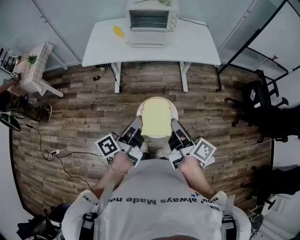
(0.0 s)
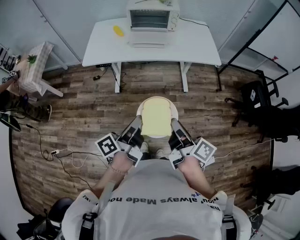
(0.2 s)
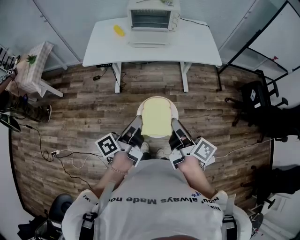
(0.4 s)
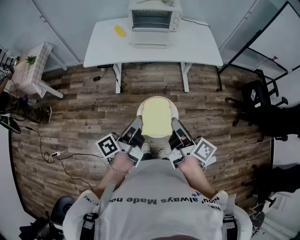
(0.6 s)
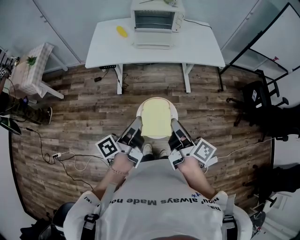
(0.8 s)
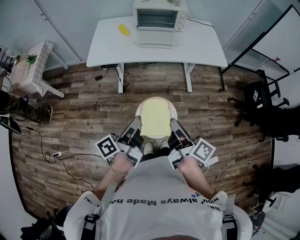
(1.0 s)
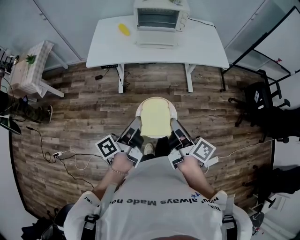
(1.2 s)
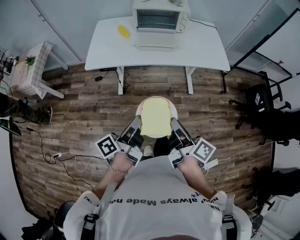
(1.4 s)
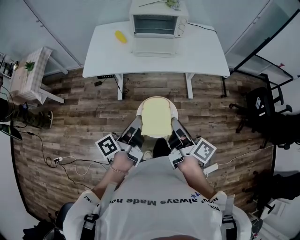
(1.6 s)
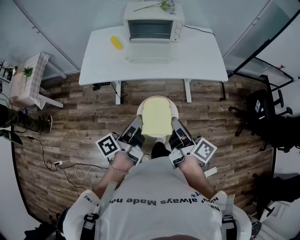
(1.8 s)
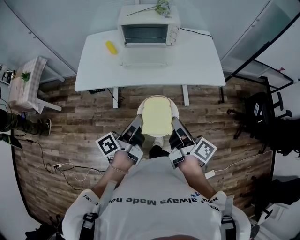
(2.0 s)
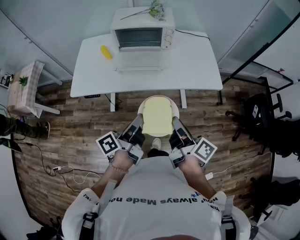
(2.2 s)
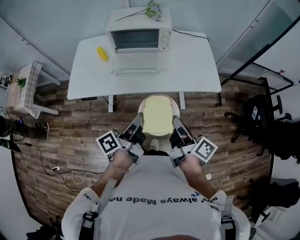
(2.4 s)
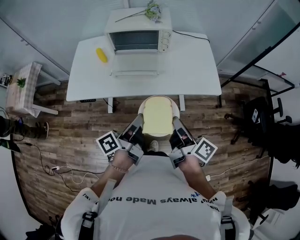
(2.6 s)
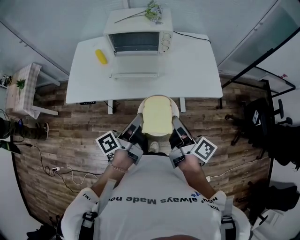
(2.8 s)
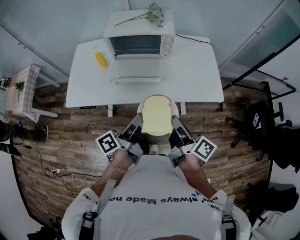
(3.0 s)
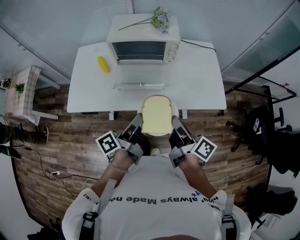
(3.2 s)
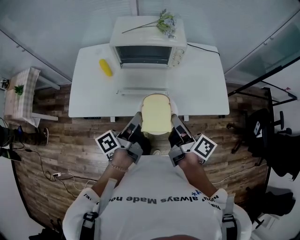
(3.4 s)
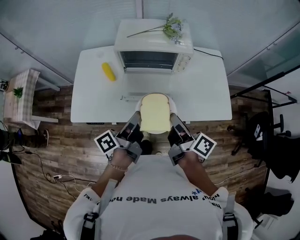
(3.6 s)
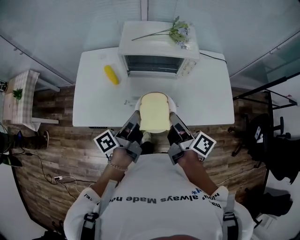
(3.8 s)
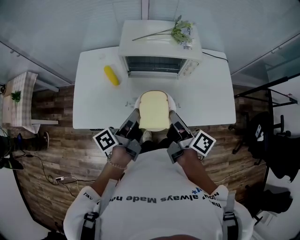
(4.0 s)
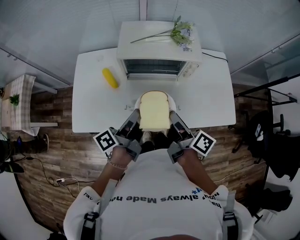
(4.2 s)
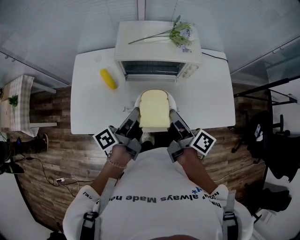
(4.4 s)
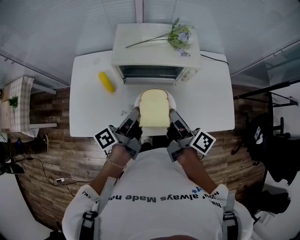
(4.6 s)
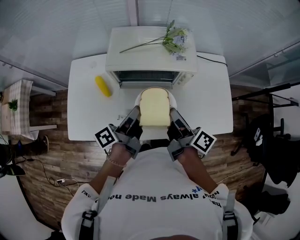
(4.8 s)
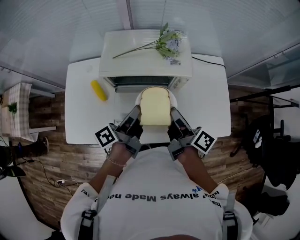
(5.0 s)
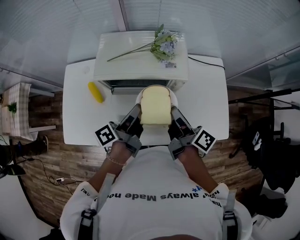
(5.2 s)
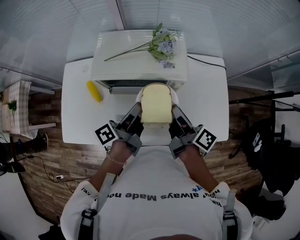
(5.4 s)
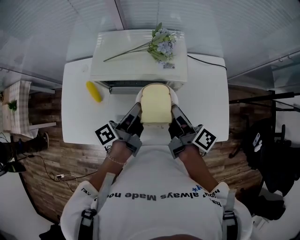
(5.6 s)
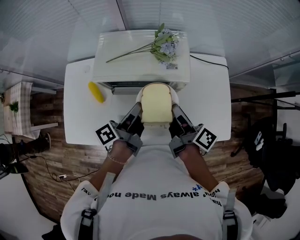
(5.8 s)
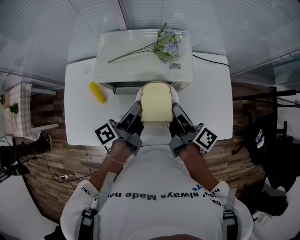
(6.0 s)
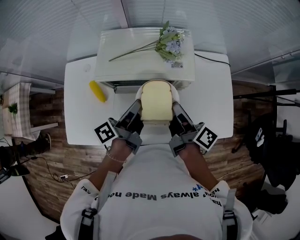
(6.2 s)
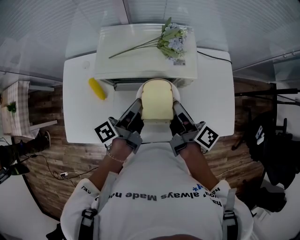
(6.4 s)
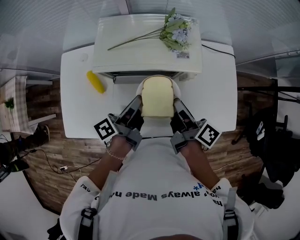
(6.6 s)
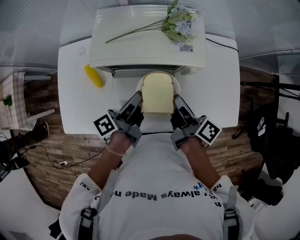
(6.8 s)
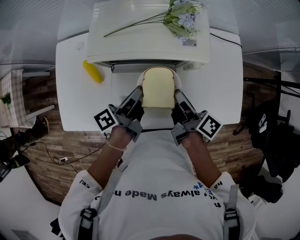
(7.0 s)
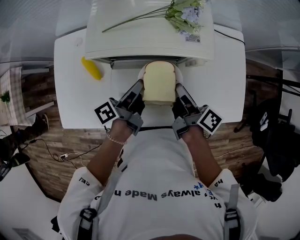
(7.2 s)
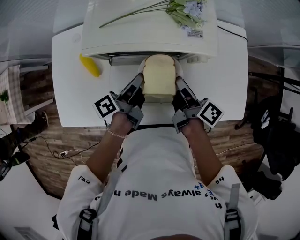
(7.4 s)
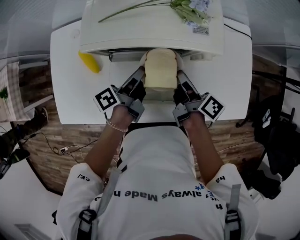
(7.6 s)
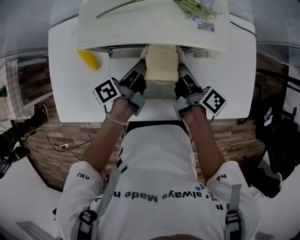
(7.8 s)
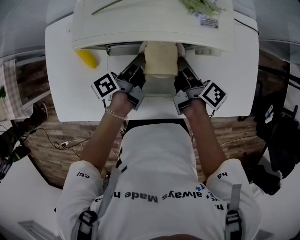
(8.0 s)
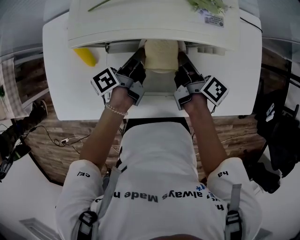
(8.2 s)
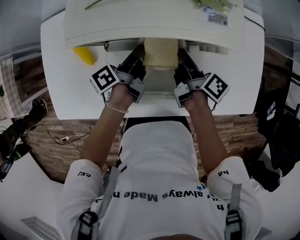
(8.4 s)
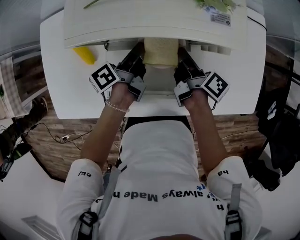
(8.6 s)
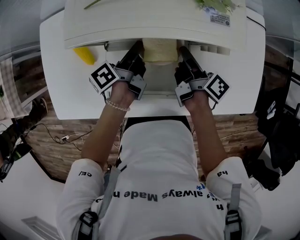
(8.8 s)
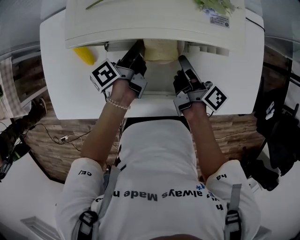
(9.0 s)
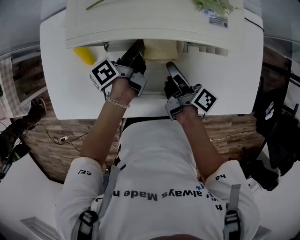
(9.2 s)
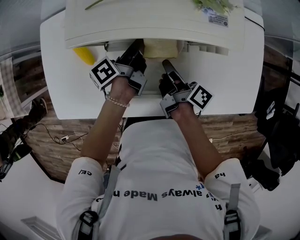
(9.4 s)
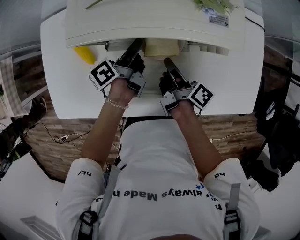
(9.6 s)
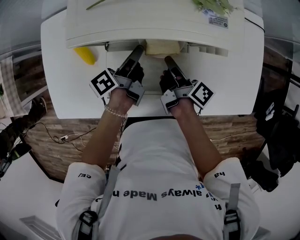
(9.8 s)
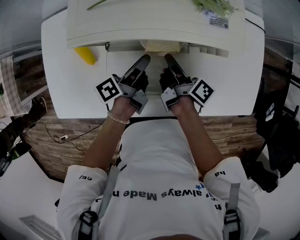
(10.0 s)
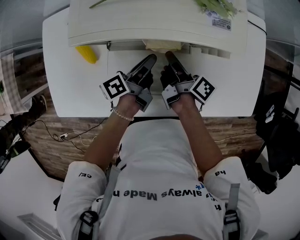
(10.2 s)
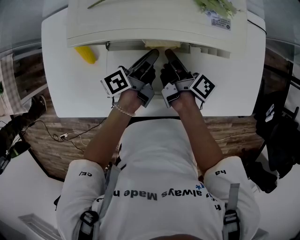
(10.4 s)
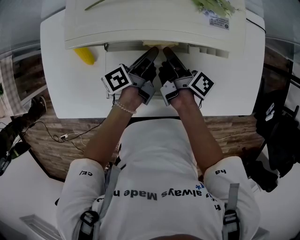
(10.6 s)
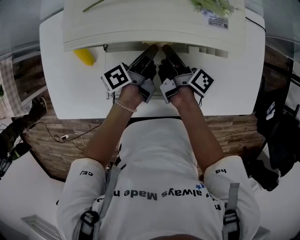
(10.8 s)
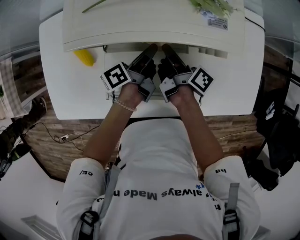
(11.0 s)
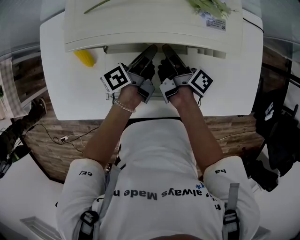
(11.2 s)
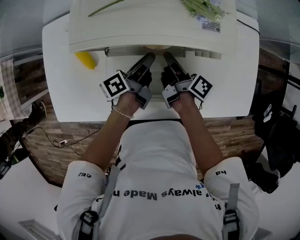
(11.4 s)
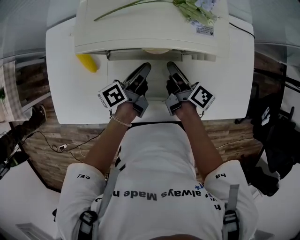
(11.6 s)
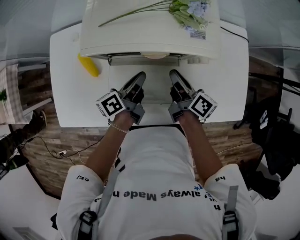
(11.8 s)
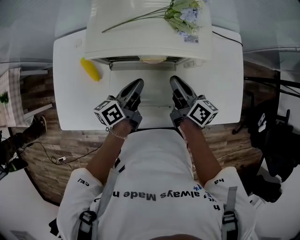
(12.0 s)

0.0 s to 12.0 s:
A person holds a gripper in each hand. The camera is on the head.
0.0 to 1.6 s: The right gripper changes place by approximately 15 cm.
1.6 to 3.0 s: The right gripper ends up roughly 30 cm from where it was.
3.0 to 4.4 s: The right gripper moves roughly 30 cm.
4.4 to 6.0 s: The right gripper changes place by roughly 15 cm.
6.0 to 7.6 s: The right gripper is displaced downward by approximately 15 cm.
7.6 to 9.0 s: The right gripper heads downward, covering some 5 cm.
10.4 to 12.0 s: The right gripper is displaced upward by some 10 cm, and turns by about 30 degrees.

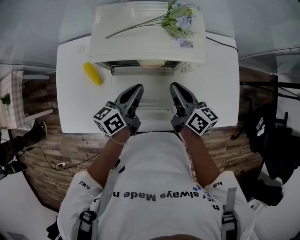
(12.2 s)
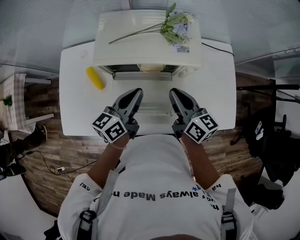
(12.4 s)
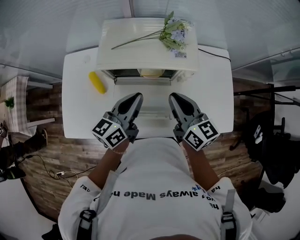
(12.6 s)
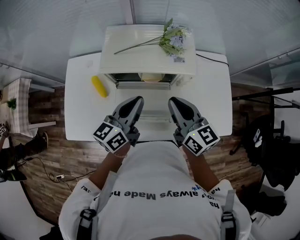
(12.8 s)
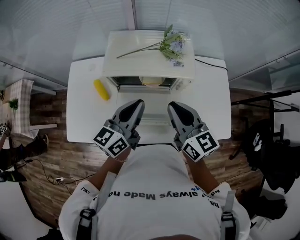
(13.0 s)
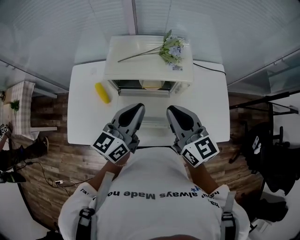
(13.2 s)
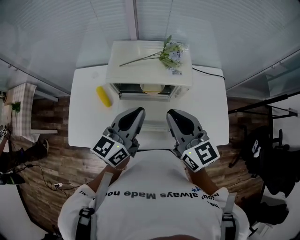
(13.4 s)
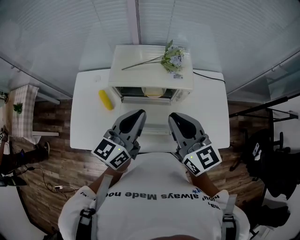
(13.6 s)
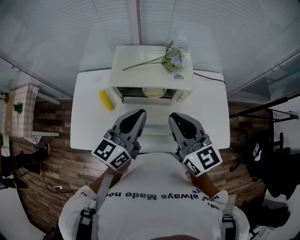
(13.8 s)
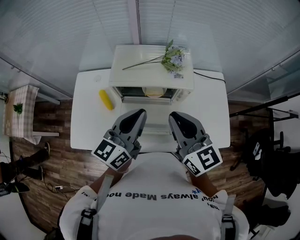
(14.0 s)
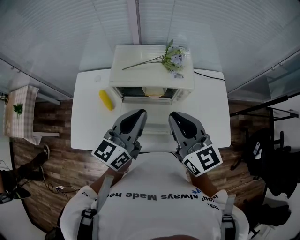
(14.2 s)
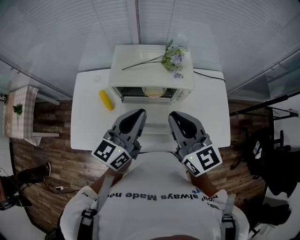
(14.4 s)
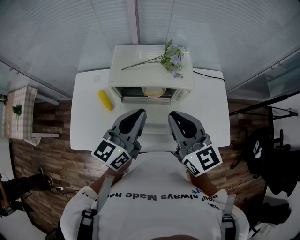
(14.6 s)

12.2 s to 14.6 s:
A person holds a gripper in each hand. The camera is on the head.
12.2 to 13.4 s: The right gripper is displaced upward by roughly 20 cm, and changes its angle by about 40 degrees.

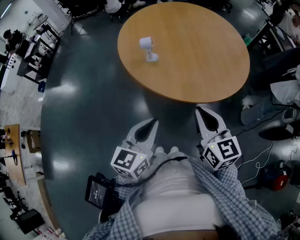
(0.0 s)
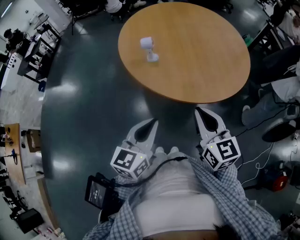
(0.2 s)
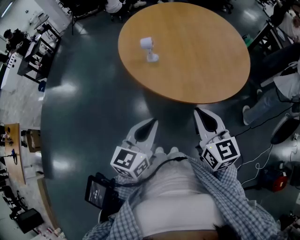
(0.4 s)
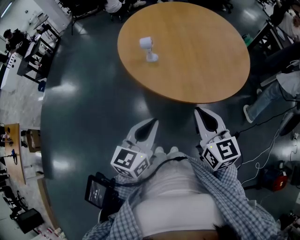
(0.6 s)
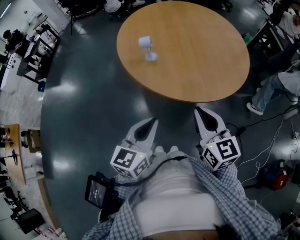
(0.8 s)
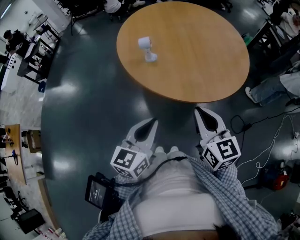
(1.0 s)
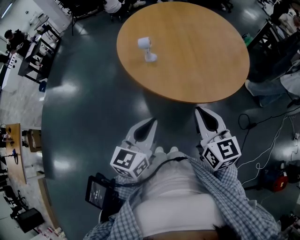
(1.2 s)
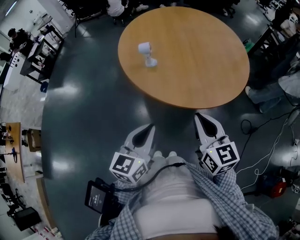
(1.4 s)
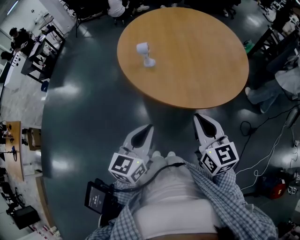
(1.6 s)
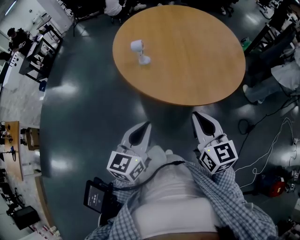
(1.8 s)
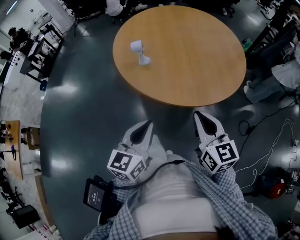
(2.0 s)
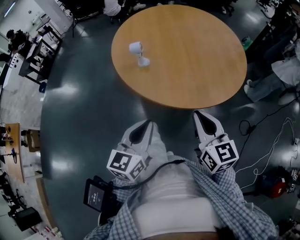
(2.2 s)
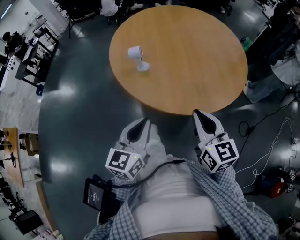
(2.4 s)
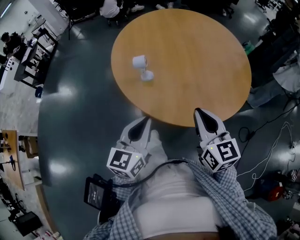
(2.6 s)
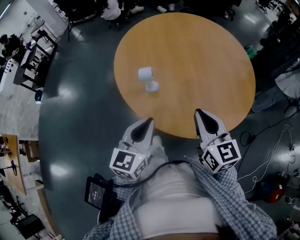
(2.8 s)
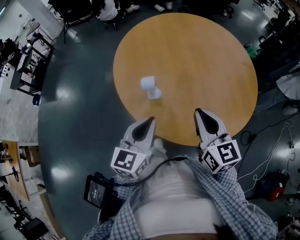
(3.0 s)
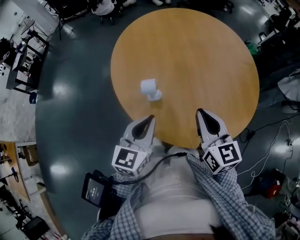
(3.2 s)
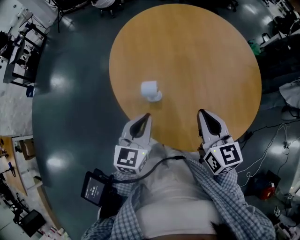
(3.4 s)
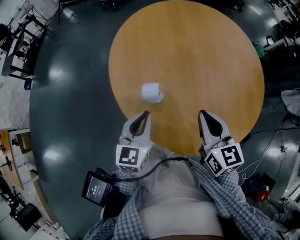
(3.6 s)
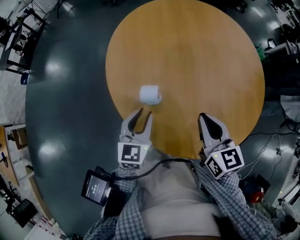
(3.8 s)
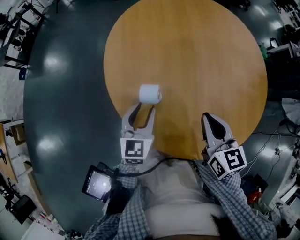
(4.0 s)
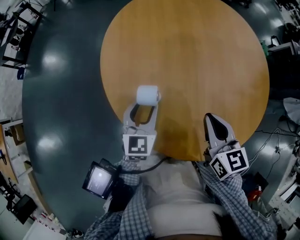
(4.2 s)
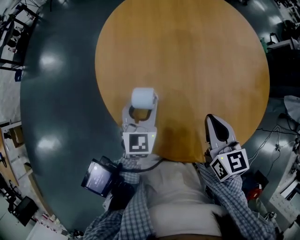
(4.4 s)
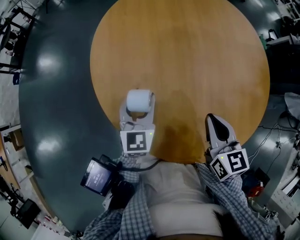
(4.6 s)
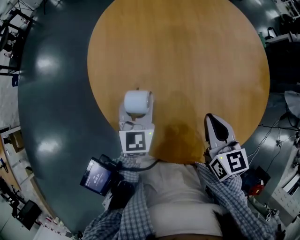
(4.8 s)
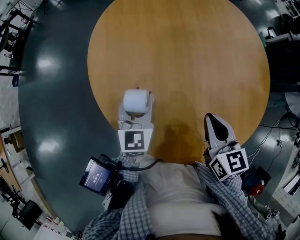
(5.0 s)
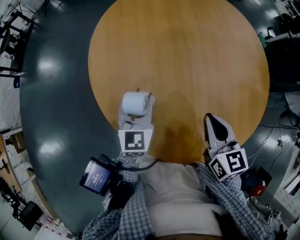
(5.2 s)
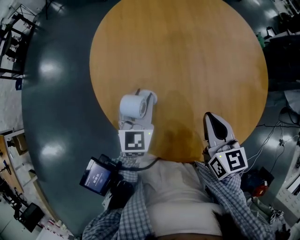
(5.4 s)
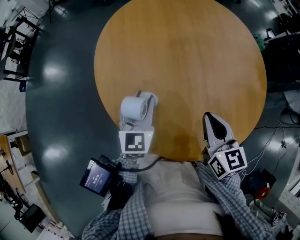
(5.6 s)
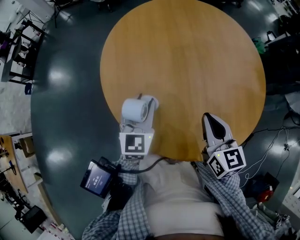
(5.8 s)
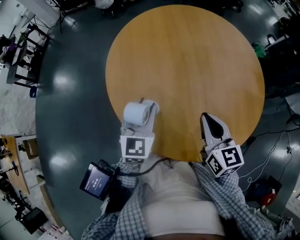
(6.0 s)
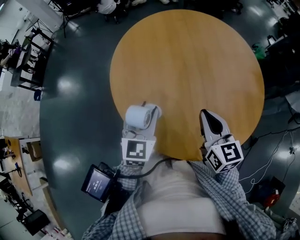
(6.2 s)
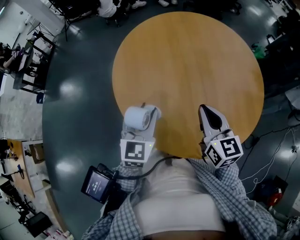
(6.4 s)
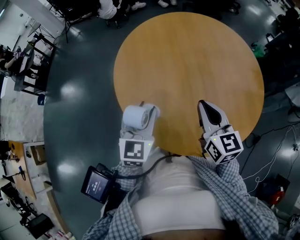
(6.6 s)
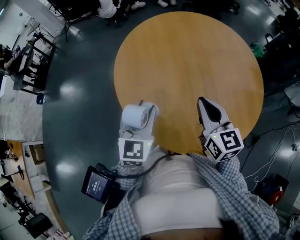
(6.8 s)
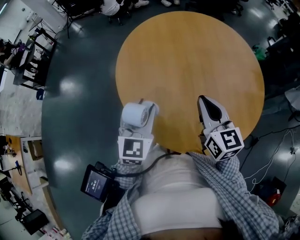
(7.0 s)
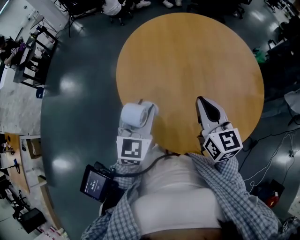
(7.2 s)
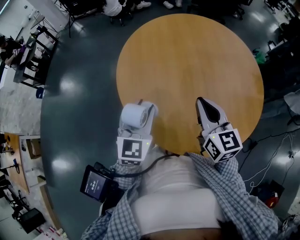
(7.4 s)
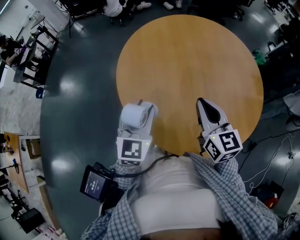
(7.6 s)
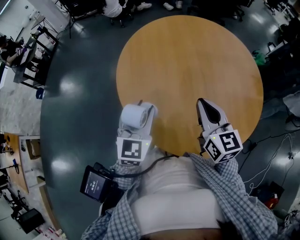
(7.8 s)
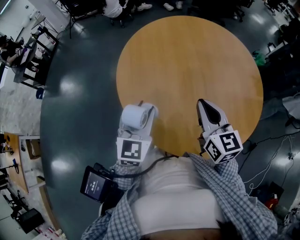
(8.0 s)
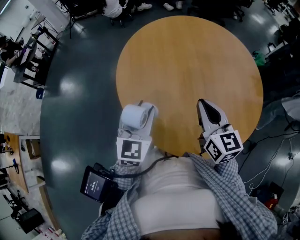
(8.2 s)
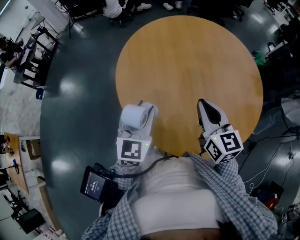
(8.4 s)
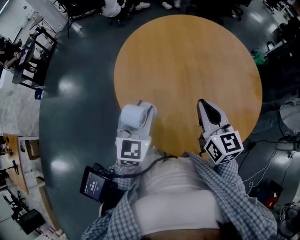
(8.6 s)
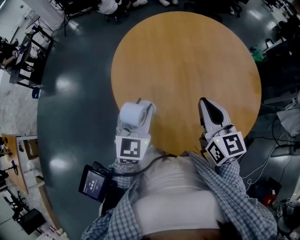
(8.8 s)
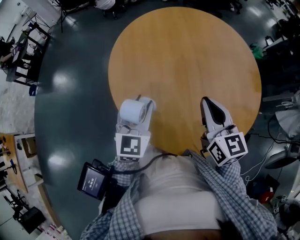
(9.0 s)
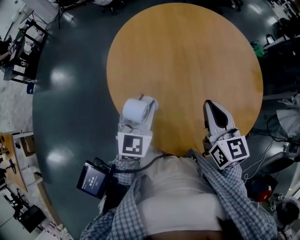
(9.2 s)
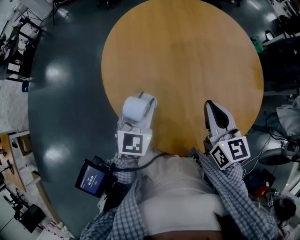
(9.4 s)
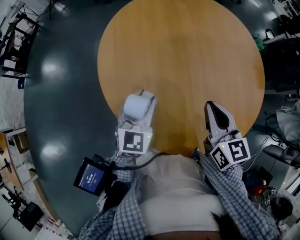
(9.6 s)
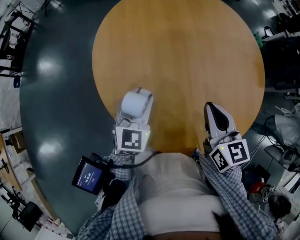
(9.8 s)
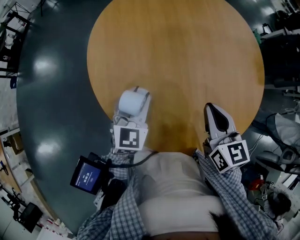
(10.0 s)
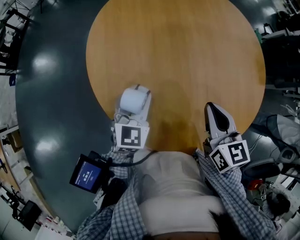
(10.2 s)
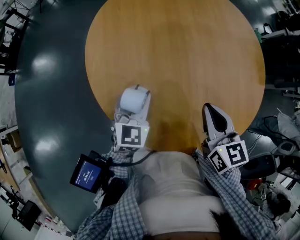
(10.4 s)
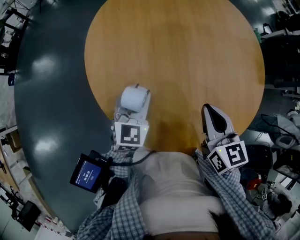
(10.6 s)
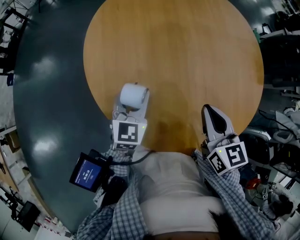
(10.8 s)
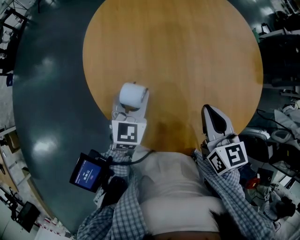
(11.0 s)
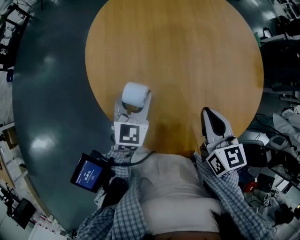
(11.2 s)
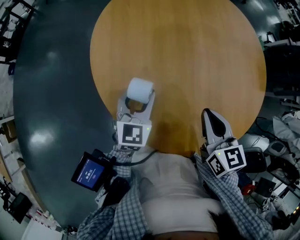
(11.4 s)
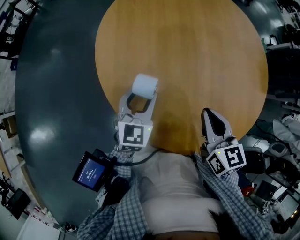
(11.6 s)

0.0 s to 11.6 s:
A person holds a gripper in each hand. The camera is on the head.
0.0 to 1.4 s: The grippers move only a little.
1.4 to 2.8 s: The two grippers go approximately 15 cm forward.
2.8 to 4.4 s: The right gripper is displaced forward and downward by about 15 cm, while the left gripper travels forward and downward by some 25 cm, and opens its fingers.
4.4 to 5.8 s: The left gripper travels upward by about 5 cm.
5.8 to 7.2 s: The two grippers go roughly 5 cm upward.
7.2 to 8.8 s: The grippers stay close to where they were, moving slightly.
8.8 to 10.2 s: Both grippers travel together downward, approximately 10 cm.
10.2 to 11.6 s: The grippers stay close to where they were, moving slightly.
